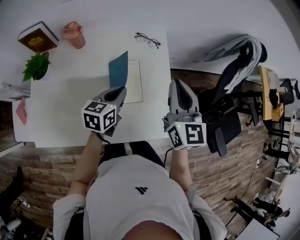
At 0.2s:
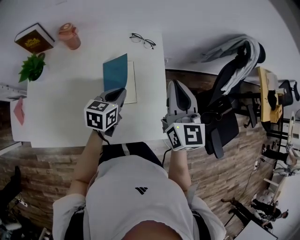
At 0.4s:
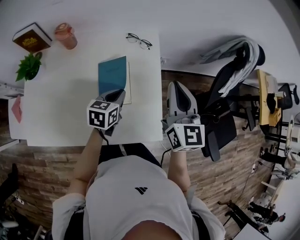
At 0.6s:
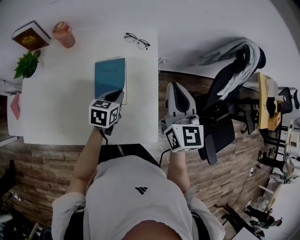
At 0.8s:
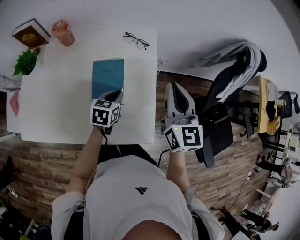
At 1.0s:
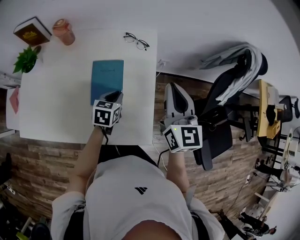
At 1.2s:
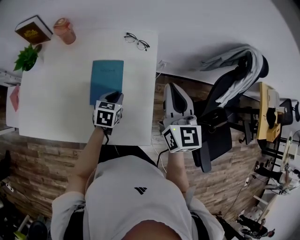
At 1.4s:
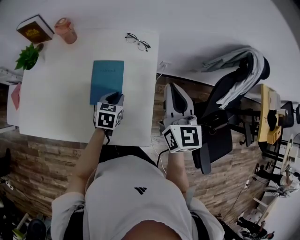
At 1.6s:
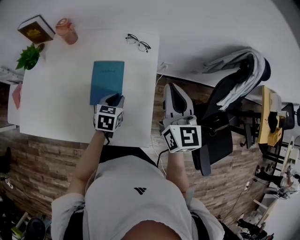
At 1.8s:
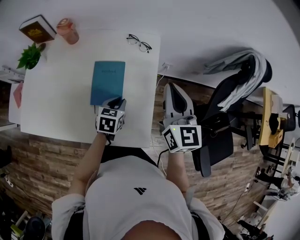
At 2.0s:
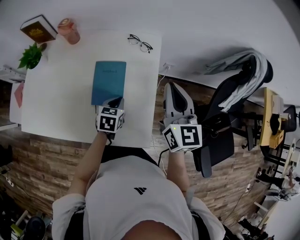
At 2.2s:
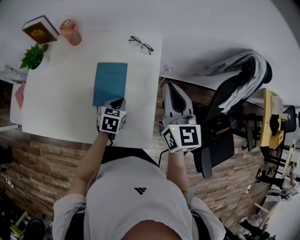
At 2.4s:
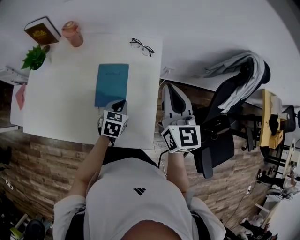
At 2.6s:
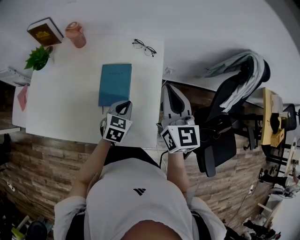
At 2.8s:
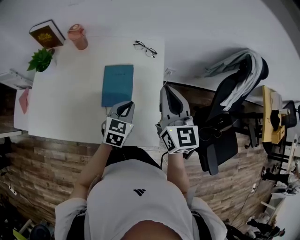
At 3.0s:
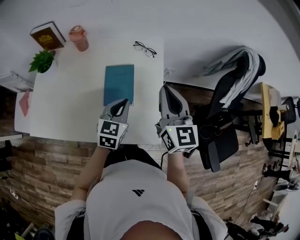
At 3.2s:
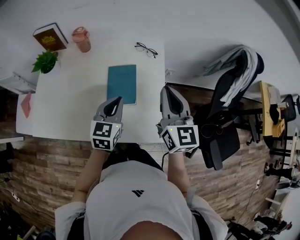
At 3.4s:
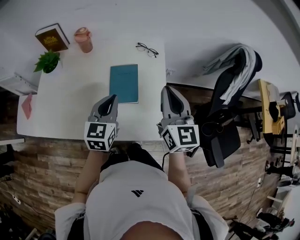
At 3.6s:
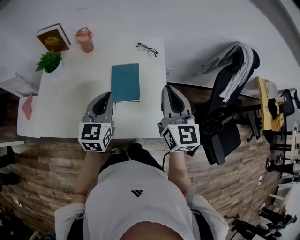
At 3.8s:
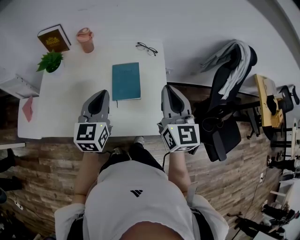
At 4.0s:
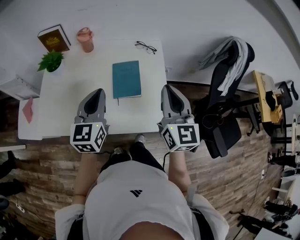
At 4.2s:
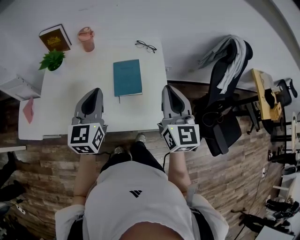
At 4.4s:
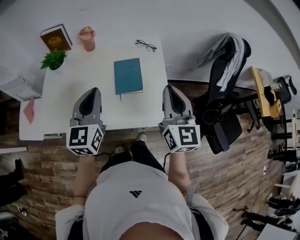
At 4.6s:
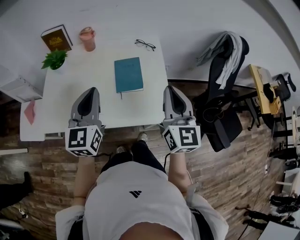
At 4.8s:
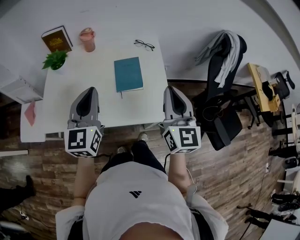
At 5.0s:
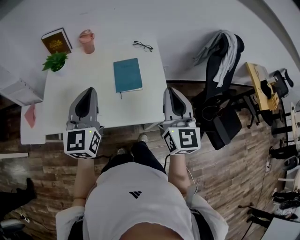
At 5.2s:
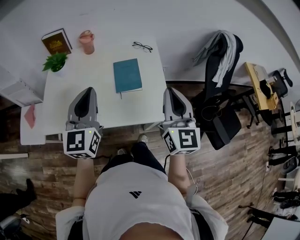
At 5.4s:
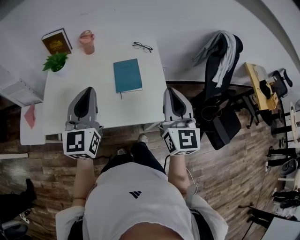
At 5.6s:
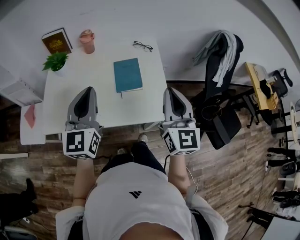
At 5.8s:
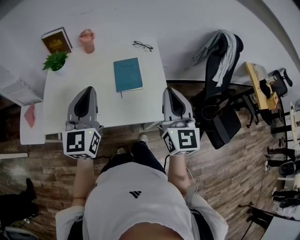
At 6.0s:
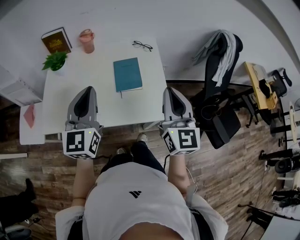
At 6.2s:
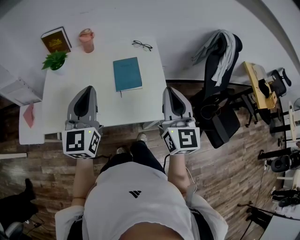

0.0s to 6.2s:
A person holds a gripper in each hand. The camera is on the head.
0.0s to 1.6s: The right gripper travels to the right by some 10 cm; the left gripper heads downward and to the right, covering roughly 15 cm, and rotates some 20 degrees.
1.6s to 3.2s: The left gripper travels upward and to the left by approximately 15 cm, and rotates about 20 degrees; the right gripper moves to the left and backward, about 10 cm.
3.2s to 4.6s: The left gripper heads to the left, upward and backward, covering some 20 cm. The right gripper goes some 15 cm backward.
4.6s to 6.2s: The grippers make only small movements.

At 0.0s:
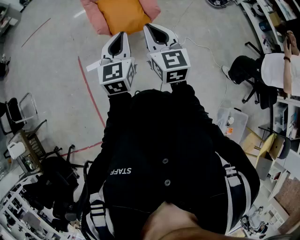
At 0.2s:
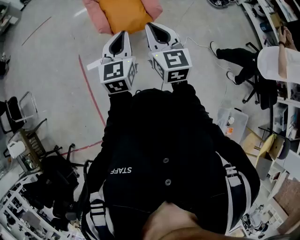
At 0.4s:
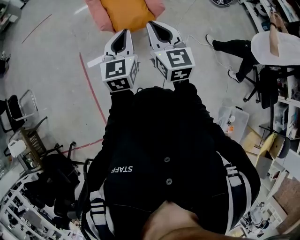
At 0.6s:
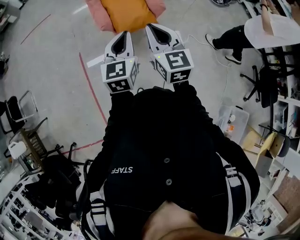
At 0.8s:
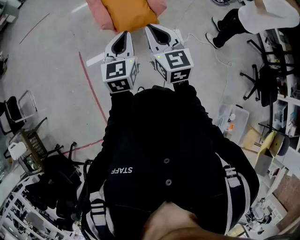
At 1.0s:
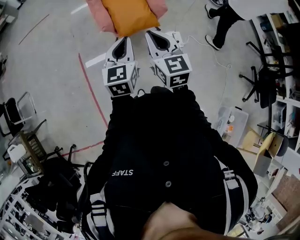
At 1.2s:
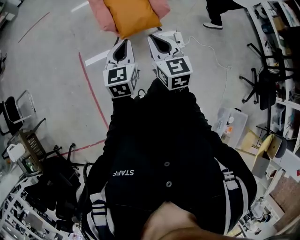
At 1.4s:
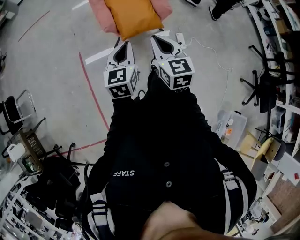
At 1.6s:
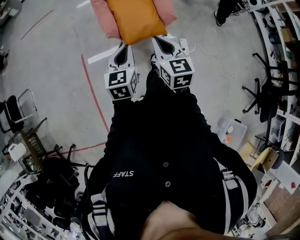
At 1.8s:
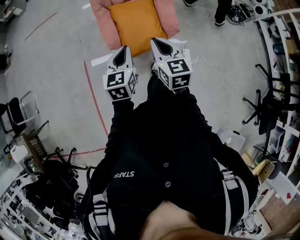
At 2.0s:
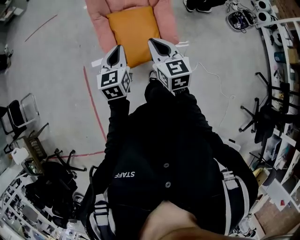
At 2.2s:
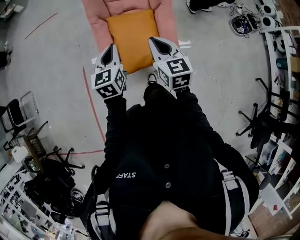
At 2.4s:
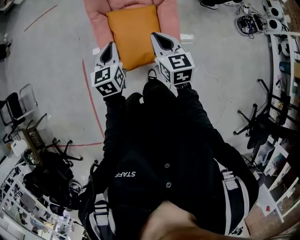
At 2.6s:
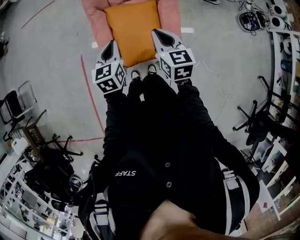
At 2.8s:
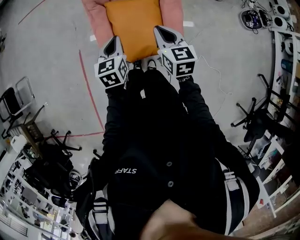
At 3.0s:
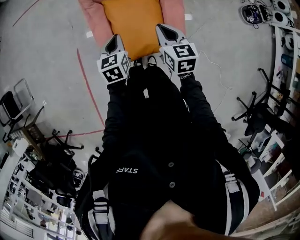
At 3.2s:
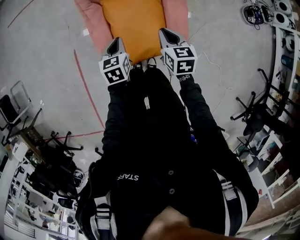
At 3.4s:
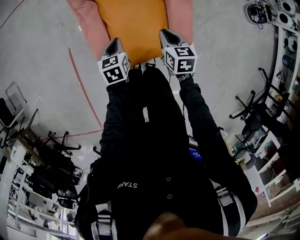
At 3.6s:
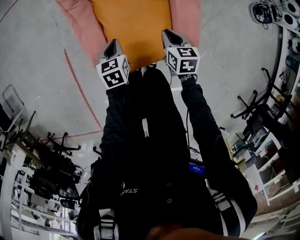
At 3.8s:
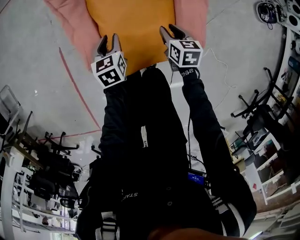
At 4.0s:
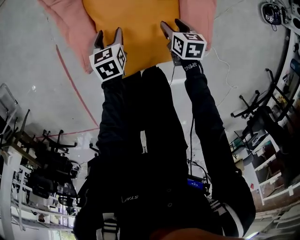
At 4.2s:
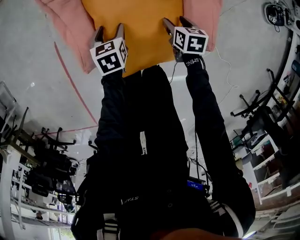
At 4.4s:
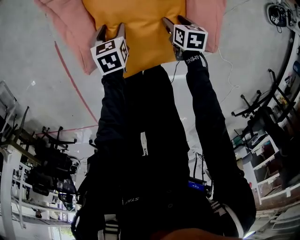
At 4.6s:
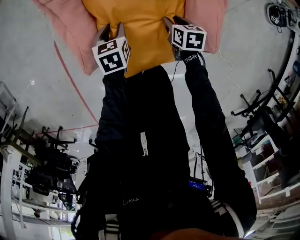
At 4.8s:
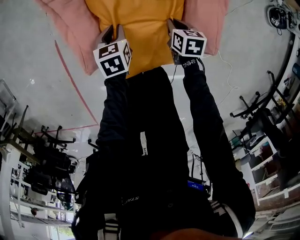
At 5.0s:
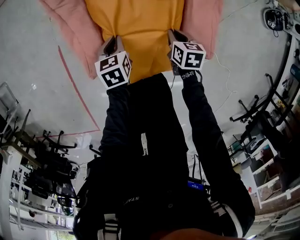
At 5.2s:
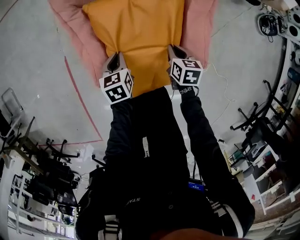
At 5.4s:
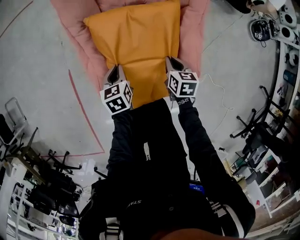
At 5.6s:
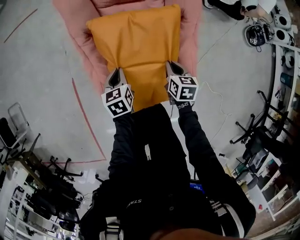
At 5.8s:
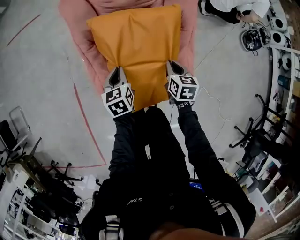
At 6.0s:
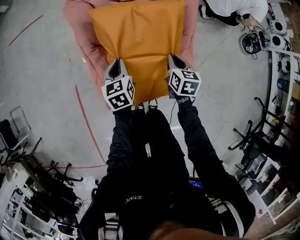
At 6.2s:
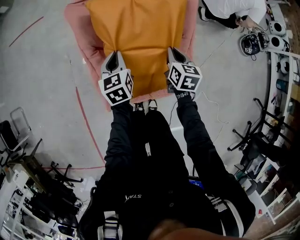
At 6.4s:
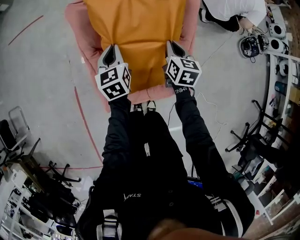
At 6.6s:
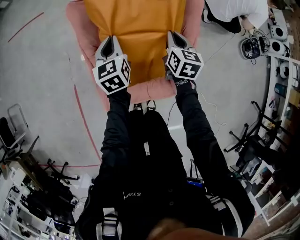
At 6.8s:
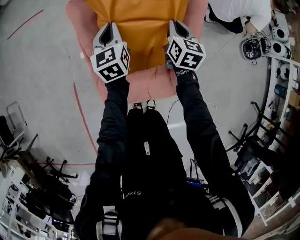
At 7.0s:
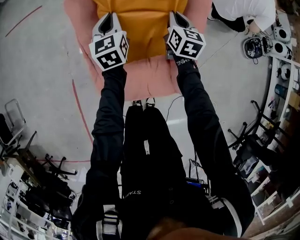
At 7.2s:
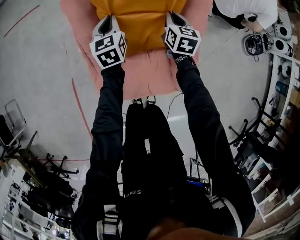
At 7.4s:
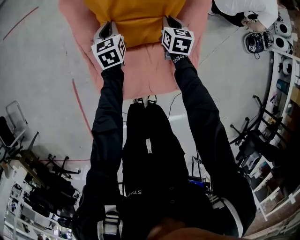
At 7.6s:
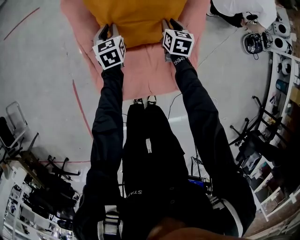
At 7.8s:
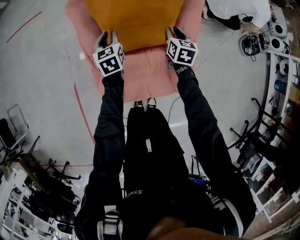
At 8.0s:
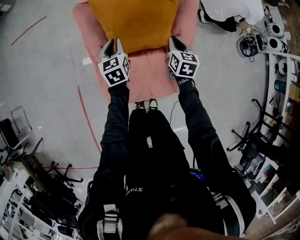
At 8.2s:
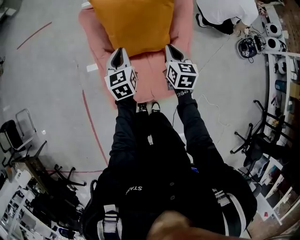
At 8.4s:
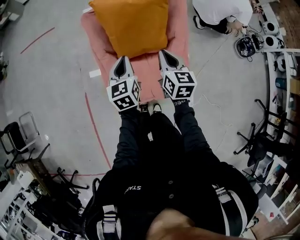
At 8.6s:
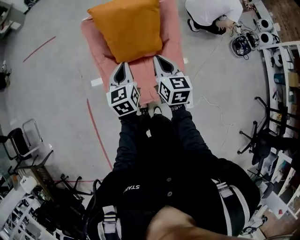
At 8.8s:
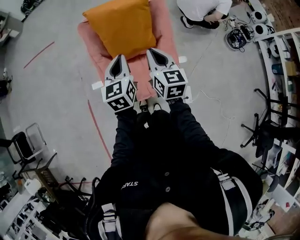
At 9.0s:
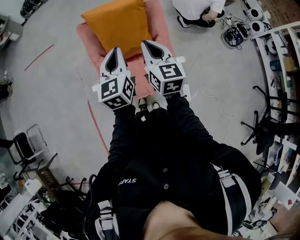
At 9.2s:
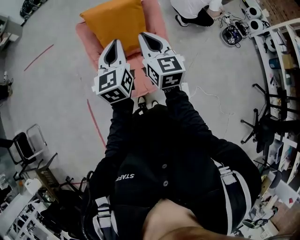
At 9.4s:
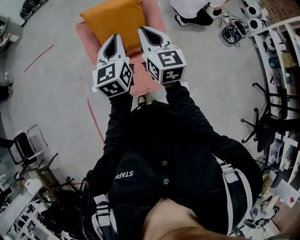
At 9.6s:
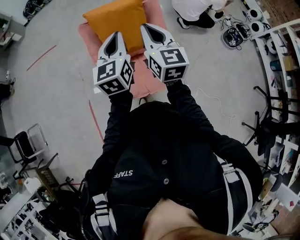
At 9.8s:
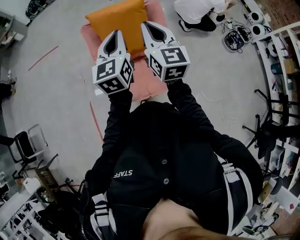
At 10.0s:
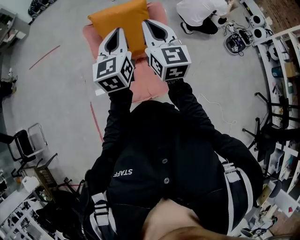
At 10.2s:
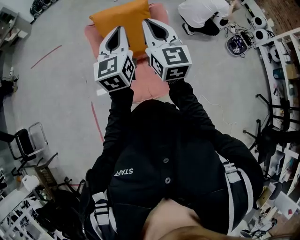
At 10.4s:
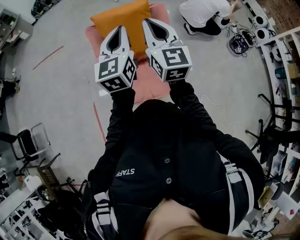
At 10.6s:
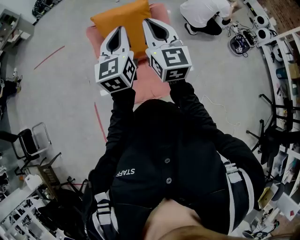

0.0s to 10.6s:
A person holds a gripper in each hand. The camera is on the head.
0.0s to 1.6s: The left gripper goes some 15 cm forward, downward and to the left, while the right gripper is displaced forward and downward by about 15 cm.
1.6s to 3.0s: The left gripper travels forward and downward by some 35 cm, and rotates roughly 20 degrees. Meanwhile the right gripper is displaced forward by approximately 35 cm.
3.0s to 4.6s: The two grippers go roughly 40 cm downward. The right gripper swivels roughly 30 degrees, and opens, while the left gripper opens its fingers.
4.6s to 6.0s: The left gripper heads upward and forward, covering some 30 cm, and closes its fingers. The right gripper travels upward by about 30 cm, changes its angle by some 20 degrees, and closes up.
6.0s to 7.6s: Both grippers travel together forward, roughly 15 cm.
7.6s to 9.0s: The grippers both shift upward and backward by roughly 50 cm. The left gripper swivels roughly 30 degrees. Meanwhile the right gripper changes its angle by approximately 30 degrees, and closes.
9.0s to 10.6s: Both grippers travel together upward, approximately 10 cm.

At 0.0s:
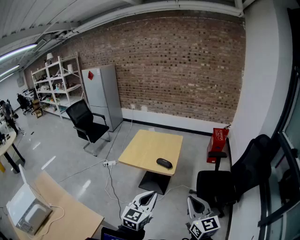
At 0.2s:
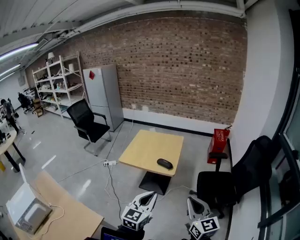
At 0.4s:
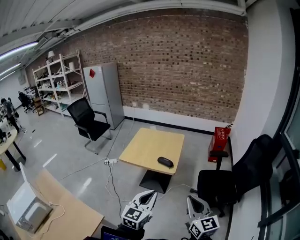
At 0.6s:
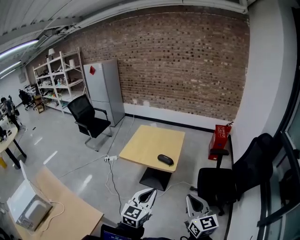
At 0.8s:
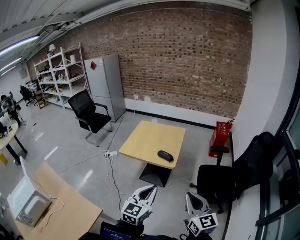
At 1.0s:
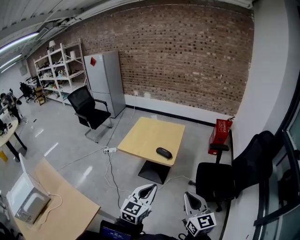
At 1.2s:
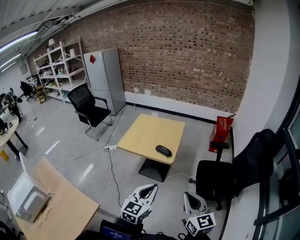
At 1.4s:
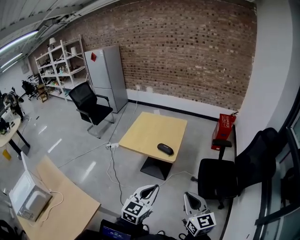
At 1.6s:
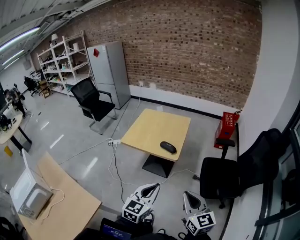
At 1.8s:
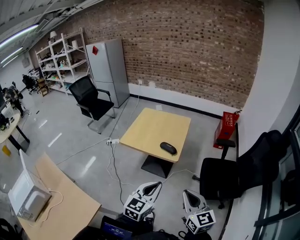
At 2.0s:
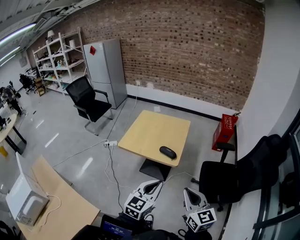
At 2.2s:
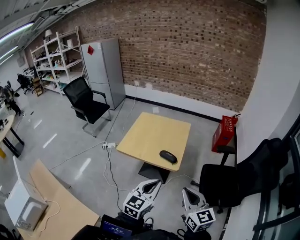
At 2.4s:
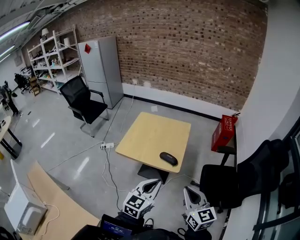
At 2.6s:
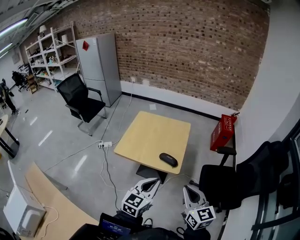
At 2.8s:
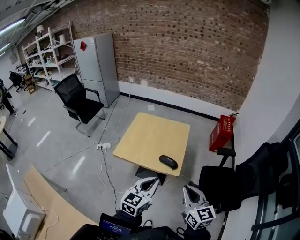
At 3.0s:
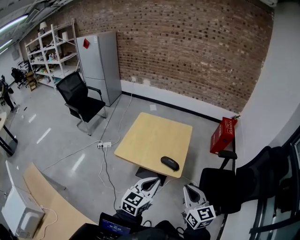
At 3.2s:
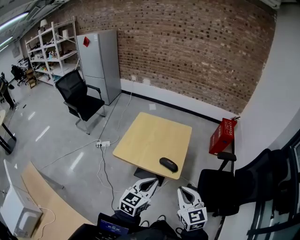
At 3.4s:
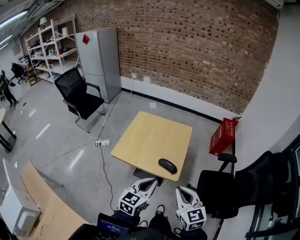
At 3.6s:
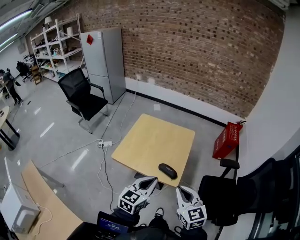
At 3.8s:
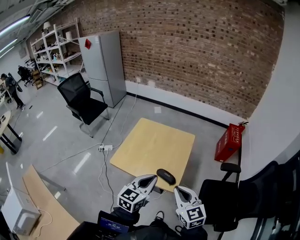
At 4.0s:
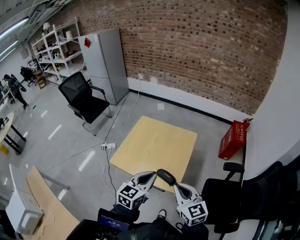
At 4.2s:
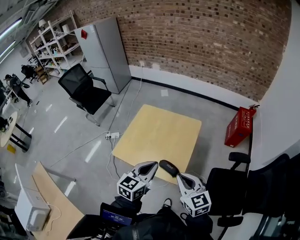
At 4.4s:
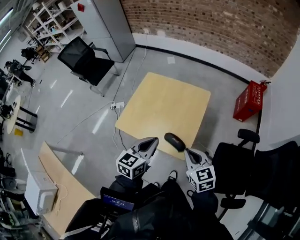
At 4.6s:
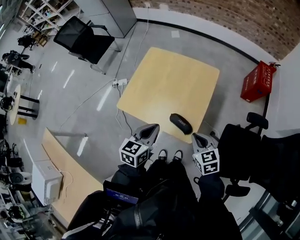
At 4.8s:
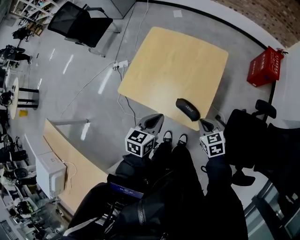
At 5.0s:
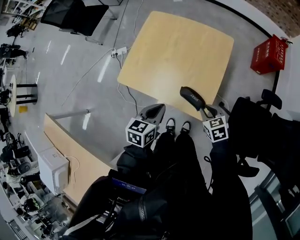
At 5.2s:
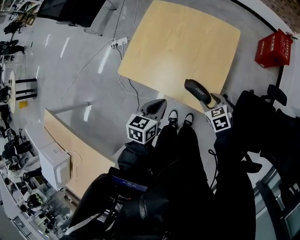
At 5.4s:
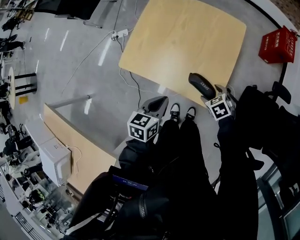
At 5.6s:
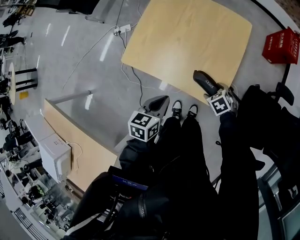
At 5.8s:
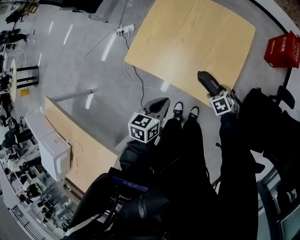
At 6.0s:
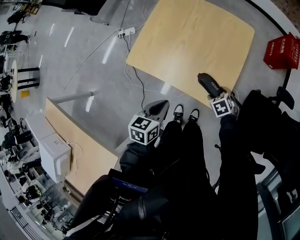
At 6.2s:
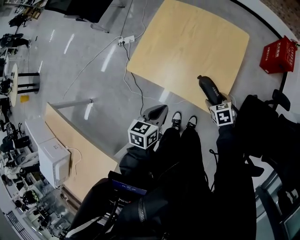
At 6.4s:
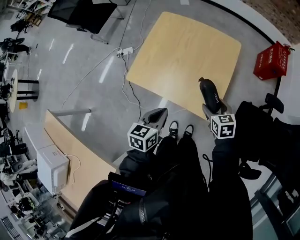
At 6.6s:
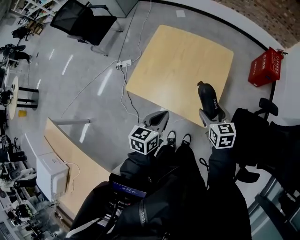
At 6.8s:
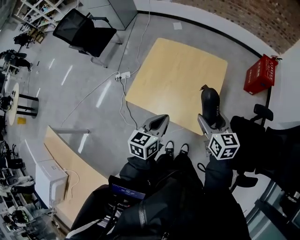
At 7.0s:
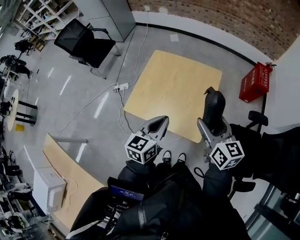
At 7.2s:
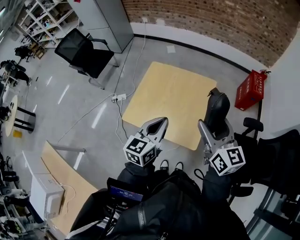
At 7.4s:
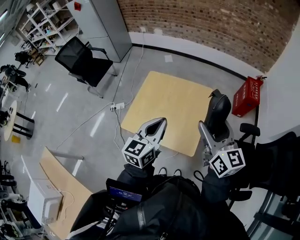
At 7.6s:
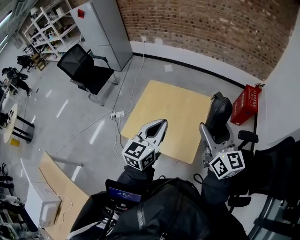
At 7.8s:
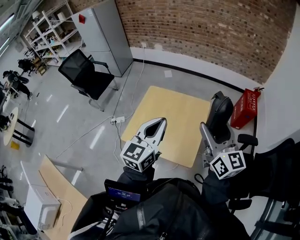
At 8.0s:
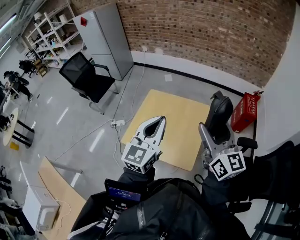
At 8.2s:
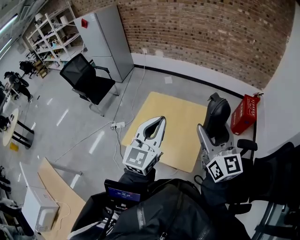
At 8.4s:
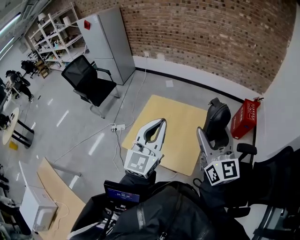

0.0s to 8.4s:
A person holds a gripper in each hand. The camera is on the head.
0.0s to 1.4s: The right gripper moves roughly 5 cm; the left gripper moves some 5 cm.
1.4s to 2.8s: Both grippers move forward and to the left, roughly 25 cm.
2.8s to 4.2s: Both grippers travel together forward, some 20 cm.
4.2s to 5.6s: The right gripper shifts approximately 40 cm downward, angles its fingers downward, by about 50 degrees, and opens its fingers. Meanwhile the left gripper shifts some 30 cm downward and to the left, and rotates about 30 degrees.
5.6s to 7.0s: The left gripper shifts roughly 20 cm upward, and turns by some 30 degrees. The right gripper is displaced upward by roughly 40 cm, and tips its fingers upward by about 60 degrees.
7.0s to 8.4s: The grippers both shift upward by roughly 20 cm. The left gripper turns by roughly 40 degrees. Meanwhile the right gripper rotates approximately 30 degrees.
